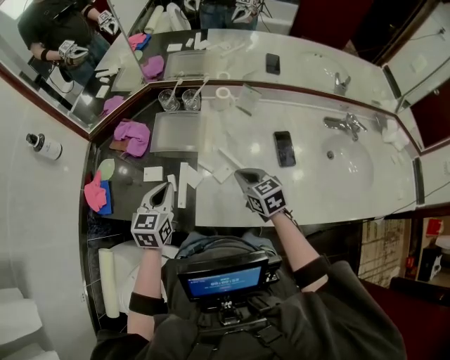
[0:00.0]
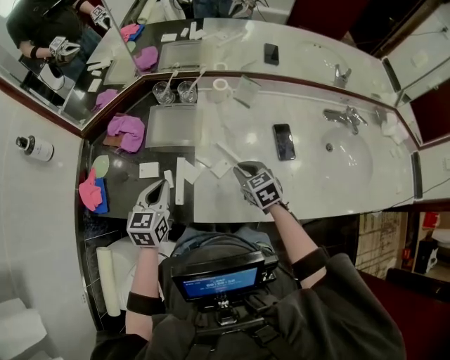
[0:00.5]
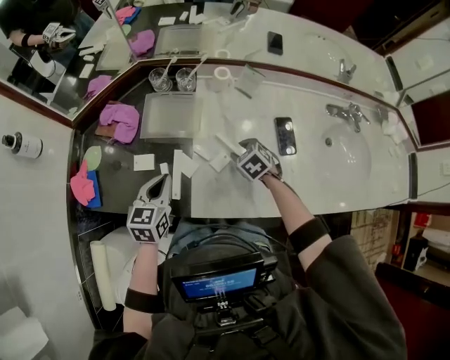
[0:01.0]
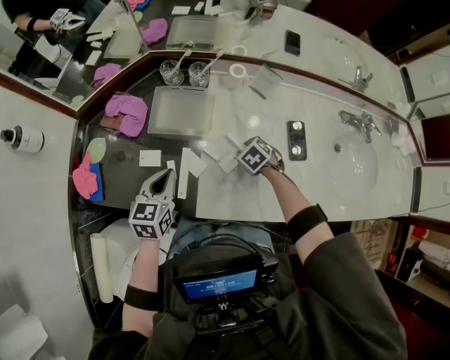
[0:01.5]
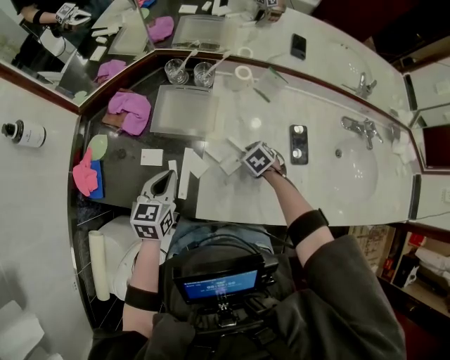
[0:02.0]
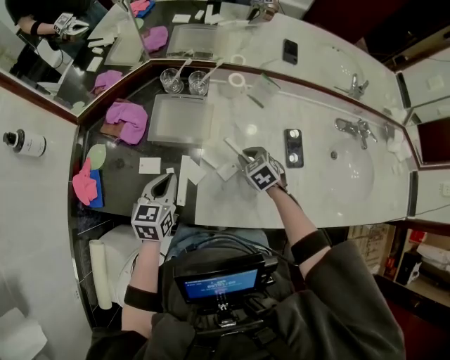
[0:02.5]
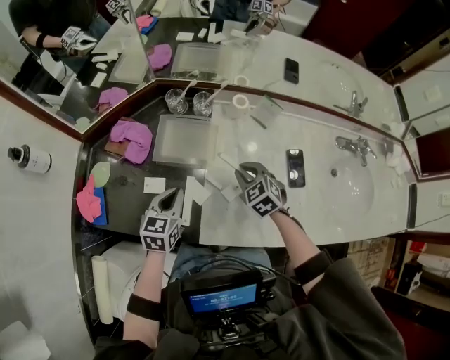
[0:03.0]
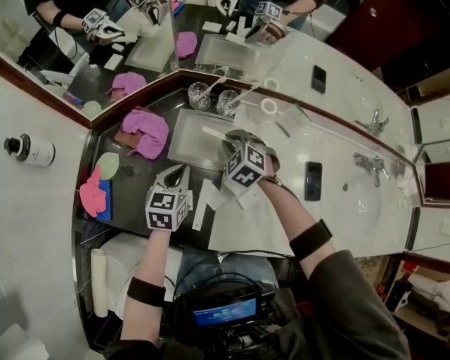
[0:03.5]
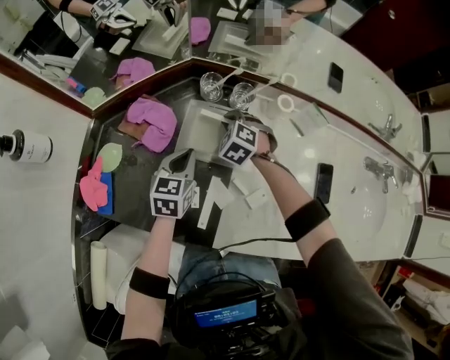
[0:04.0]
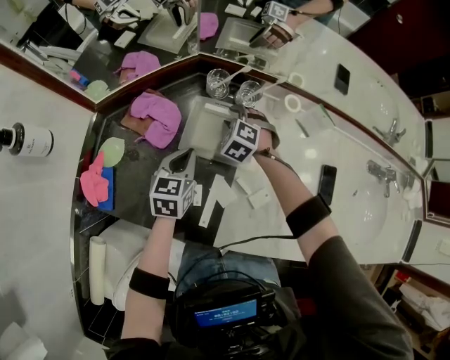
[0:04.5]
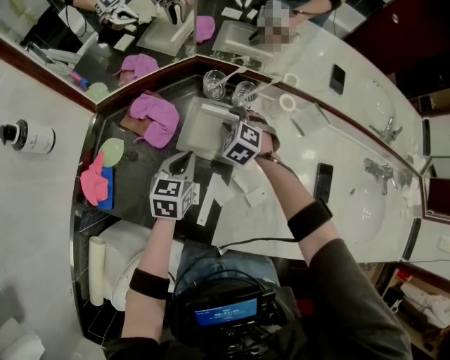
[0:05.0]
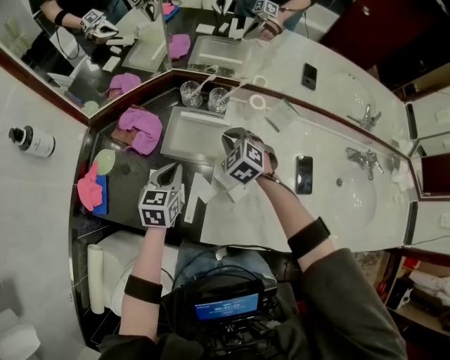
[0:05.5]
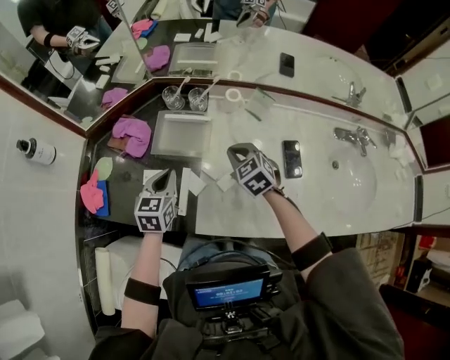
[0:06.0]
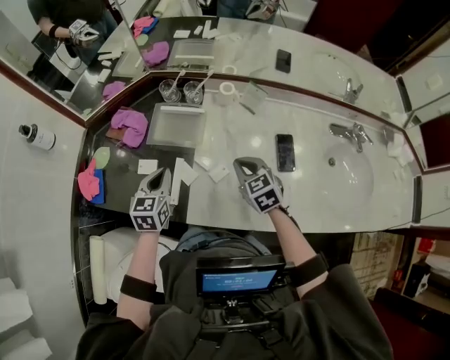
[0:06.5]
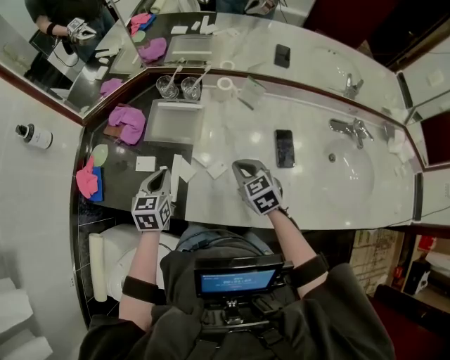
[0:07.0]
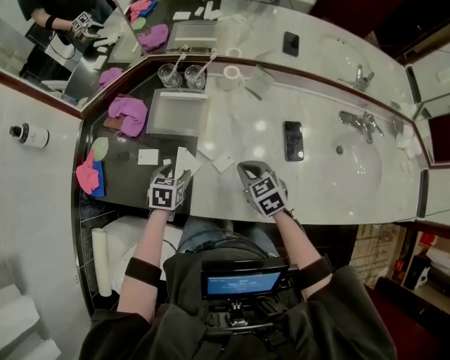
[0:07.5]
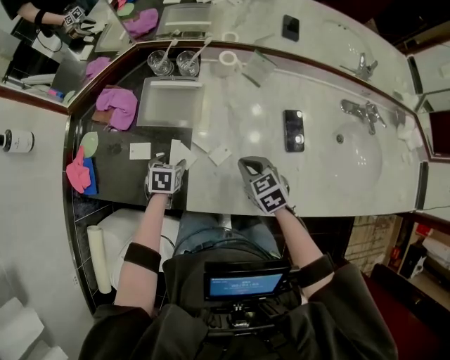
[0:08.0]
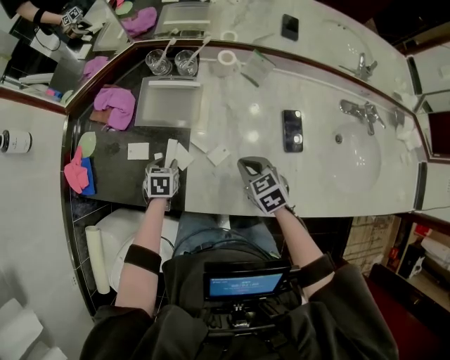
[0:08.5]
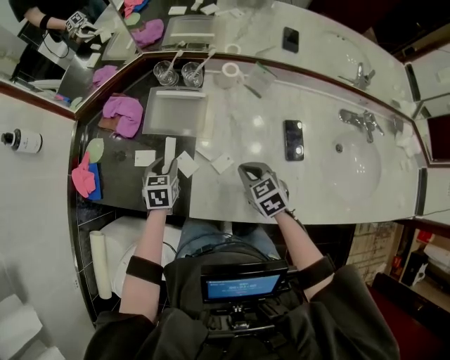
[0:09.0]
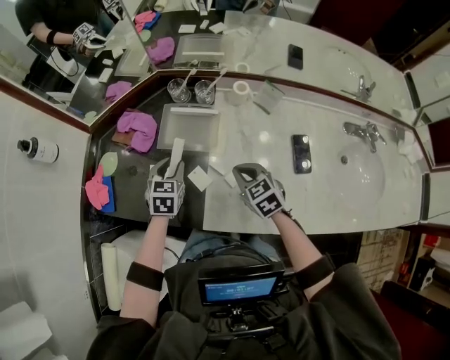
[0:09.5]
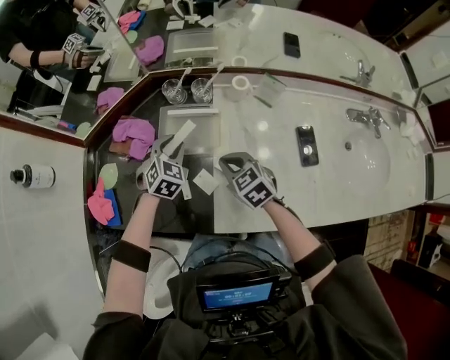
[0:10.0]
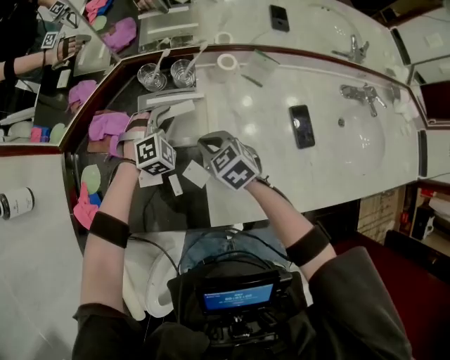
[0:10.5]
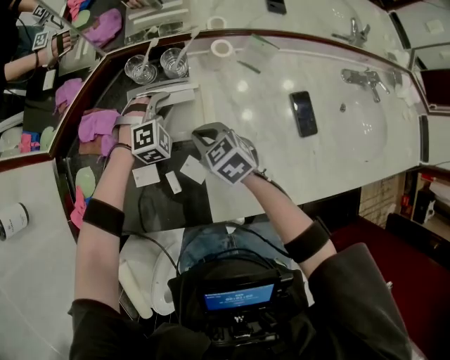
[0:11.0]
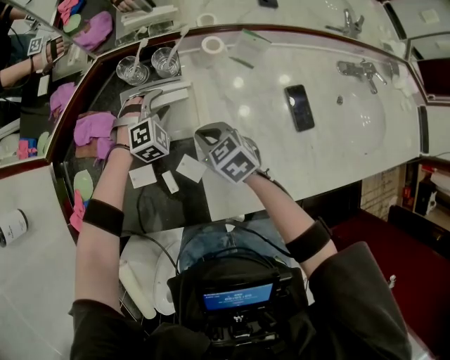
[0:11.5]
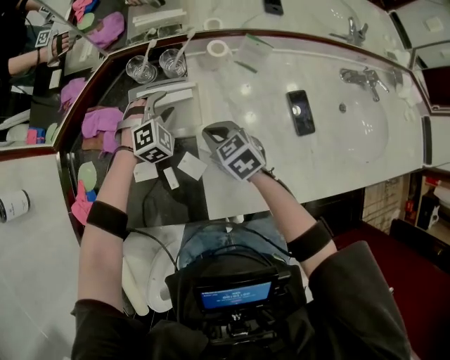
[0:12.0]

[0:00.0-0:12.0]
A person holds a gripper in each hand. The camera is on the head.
0:00.0 to 0:02.0: The right gripper goes roughly 15 cm downward, and points its fingers about 40 degrees further downward. Meanwhile the left gripper heads downward, covering about 5 cm.
0:02.0 to 0:04.0: The right gripper travels forward and to the left by roughly 30 cm, and rotates approximately 30 degrees. The left gripper travels forward by roughly 15 cm.
0:04.0 to 0:06.0: The right gripper shifts about 25 cm backward, to the right and upward, and swivels some 30 degrees. The left gripper heads backward and upward, covering approximately 15 cm.
0:06.0 to 0:08.0: The left gripper heads downward, covering roughly 15 cm, tilts its fingers roughly 30 degrees downward, and opens up. Meanwhile the right gripper goes approximately 15 cm backward and downward.
0:08.0 to 0:10.0: The left gripper is displaced forward and upward by roughly 20 cm, and twists some 40 degrees clockwise, seen from behind. The right gripper heads to the left and forward, covering about 15 cm.
0:10.0 to 0:12.0: The right gripper ends up roughly 5 cm from where it was. The left gripper shifts some 10 cm to the right, downward and forward, and changes its angle by some 40 degrees.

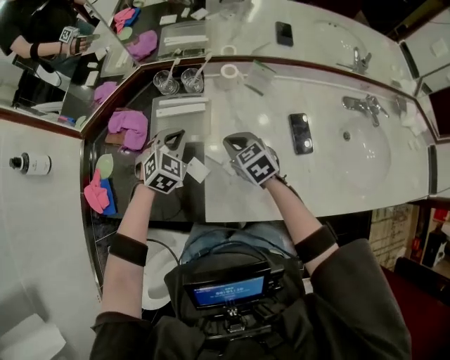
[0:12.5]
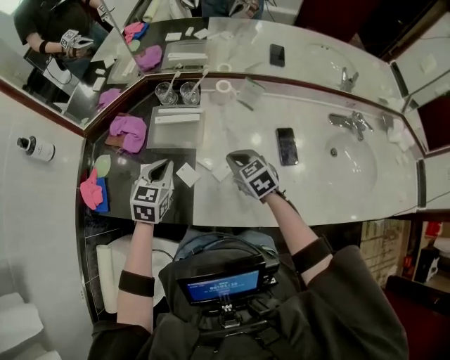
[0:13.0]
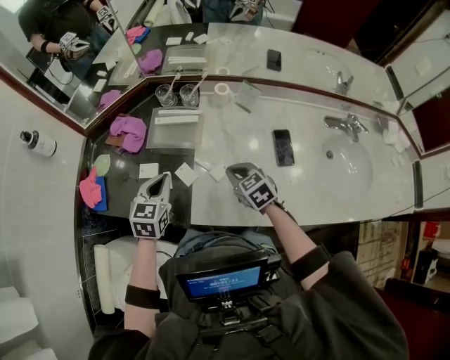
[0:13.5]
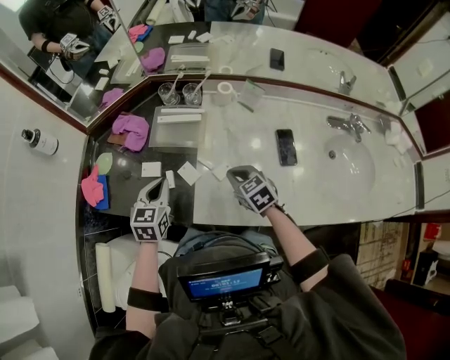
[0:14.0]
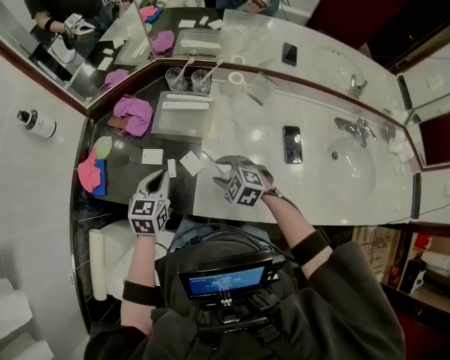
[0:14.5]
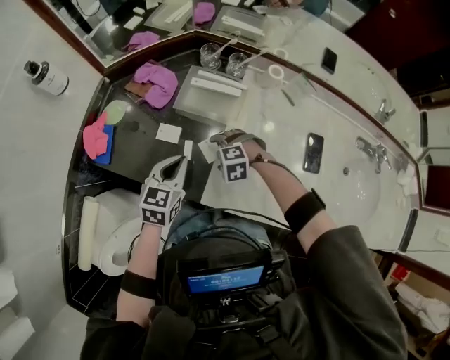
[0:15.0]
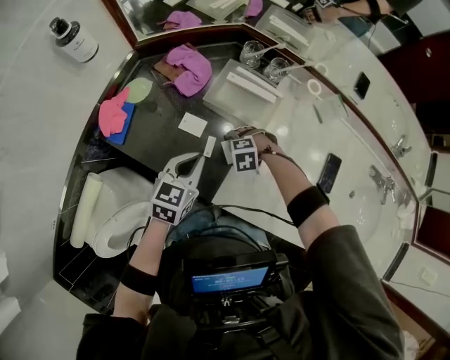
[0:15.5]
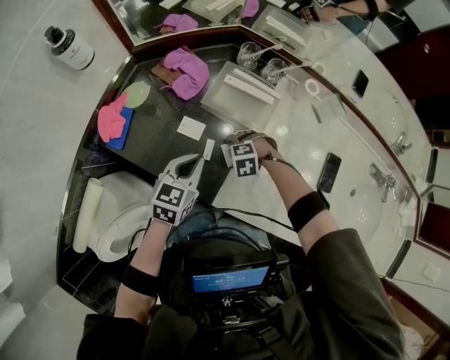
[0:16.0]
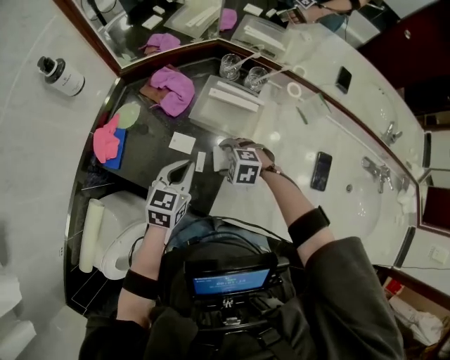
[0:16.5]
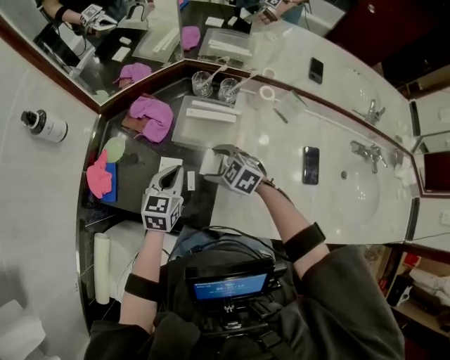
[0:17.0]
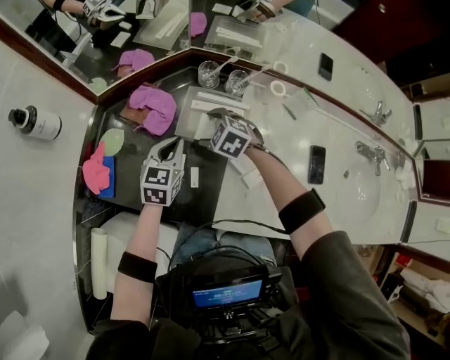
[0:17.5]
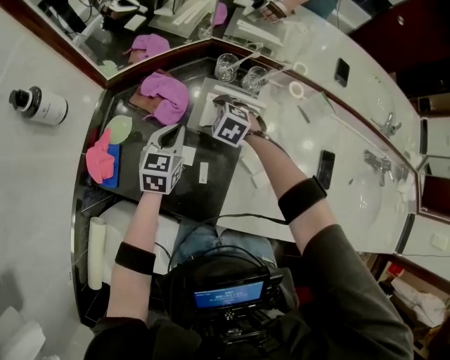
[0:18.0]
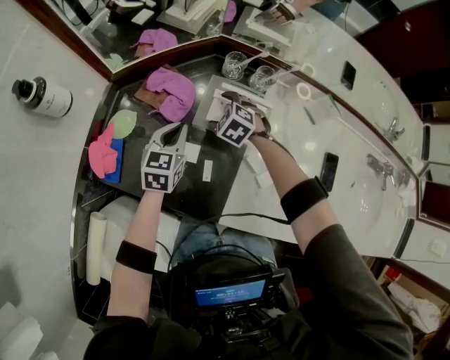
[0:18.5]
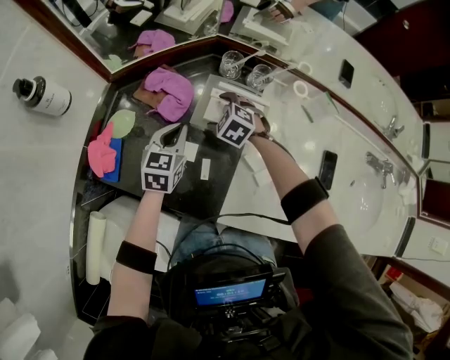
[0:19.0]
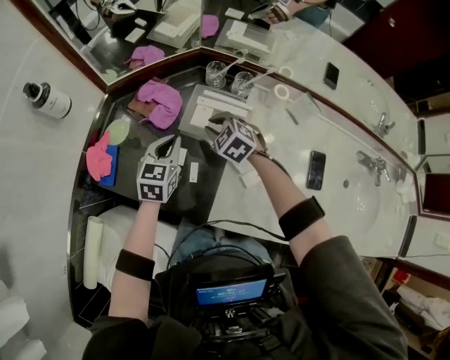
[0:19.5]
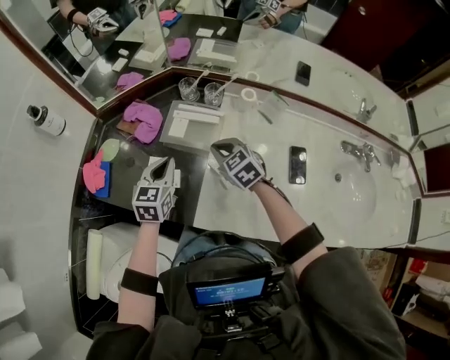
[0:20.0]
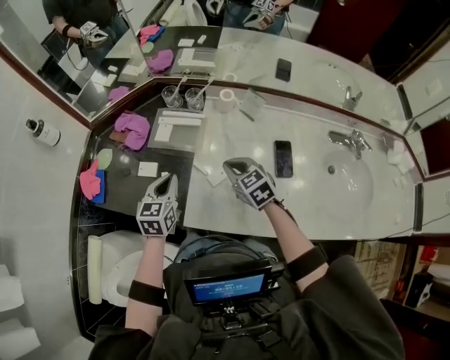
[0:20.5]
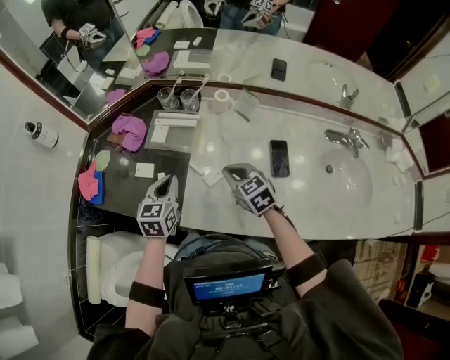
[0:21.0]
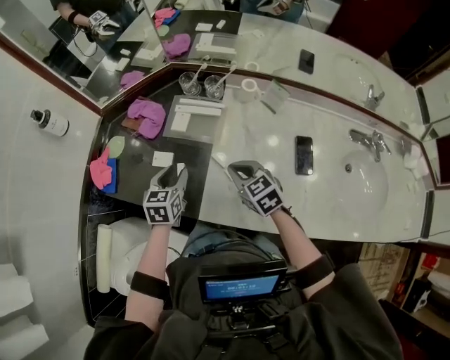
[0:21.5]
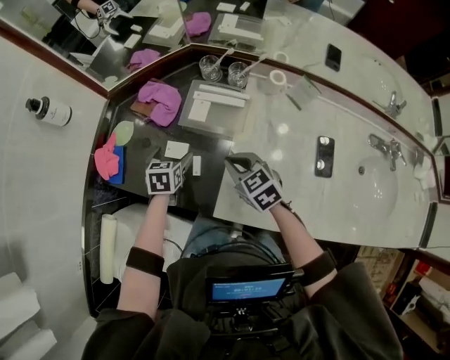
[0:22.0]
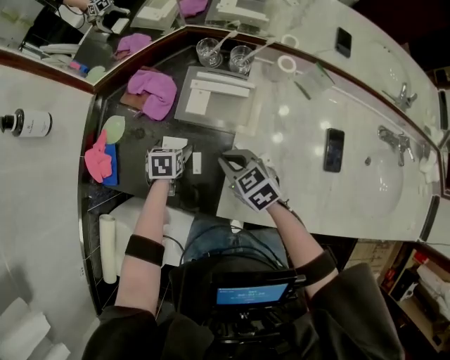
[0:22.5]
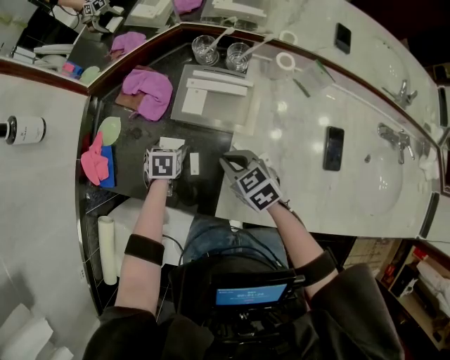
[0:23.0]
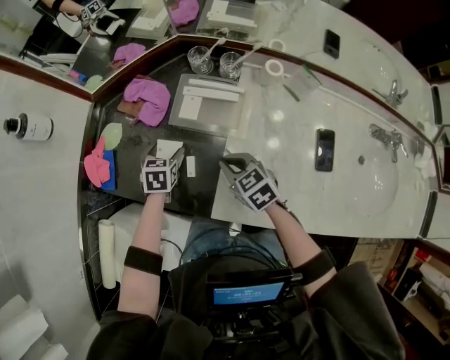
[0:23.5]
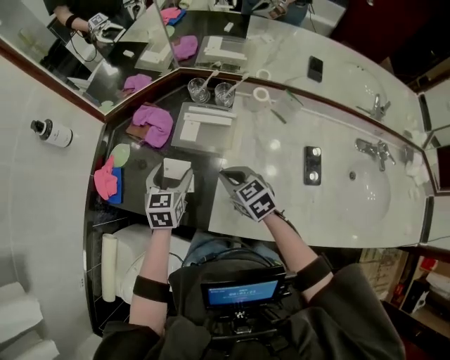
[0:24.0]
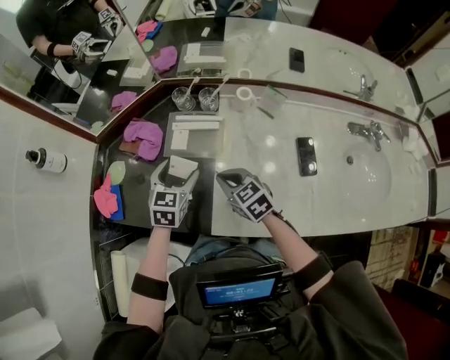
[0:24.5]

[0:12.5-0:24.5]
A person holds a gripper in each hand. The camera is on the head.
0:12.5 to 0:14.5: The grippers both shift backward and to the left by approximately 15 cm. The left gripper rotates around the line of its fingers by about 40 degrees, counterclockwise from behind; the right gripper swivels some 40 degrees, and opens.
0:14.5 to 0:16.5: The right gripper shifts by about 15 cm, swivels some 30 degrees, and opens up. Meanwhile the left gripper moves about 5 cm.
0:16.5 to 0:18.5: Both grippers travel together forward, some 20 cm. The right gripper changes its angle by roughly 30 degrees.
0:18.5 to 0:20.5: The left gripper travels backward and to the right by some 25 cm, while the right gripper goes some 35 cm backward, to the right and upward, rotates some 40 degrees, and closes up.
0:20.5 to 0:22.5: The right gripper moves to the left, downward and forward, roughly 20 cm, while the left gripper moves downward, to the left and forward, approximately 25 cm, tilts its fingers some 40 degrees downward, and opens up.
0:22.5 to 0:24.5: The right gripper shifts some 10 cm upward and to the right; the left gripper heads upward and to the right, covering roughly 20 cm, and turns by some 40 degrees.

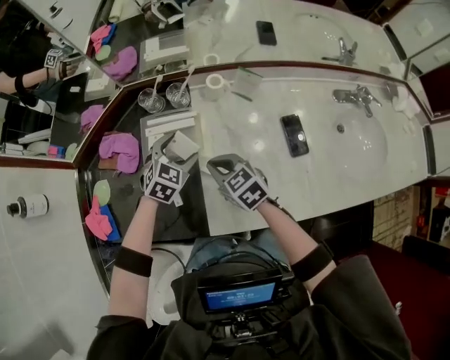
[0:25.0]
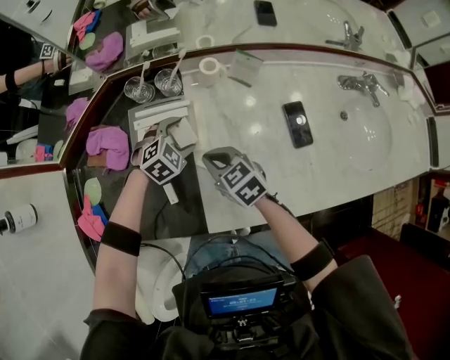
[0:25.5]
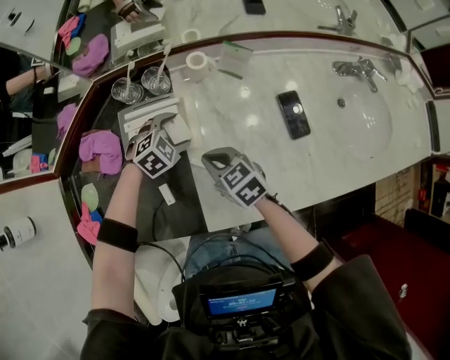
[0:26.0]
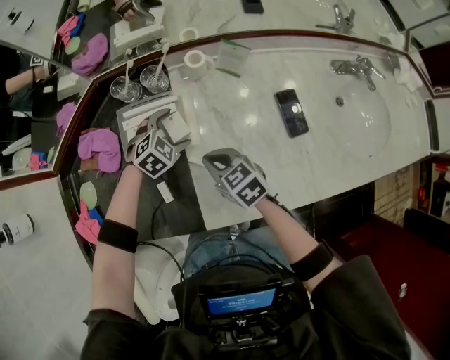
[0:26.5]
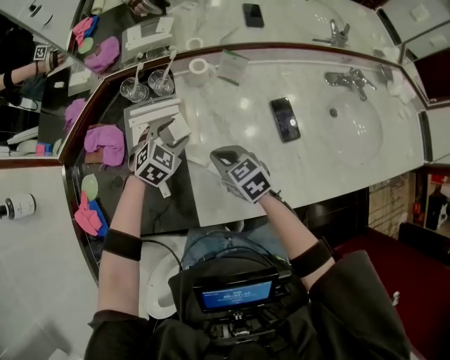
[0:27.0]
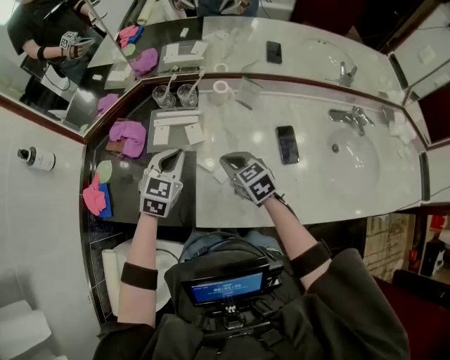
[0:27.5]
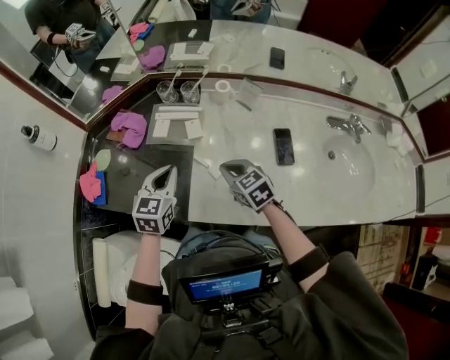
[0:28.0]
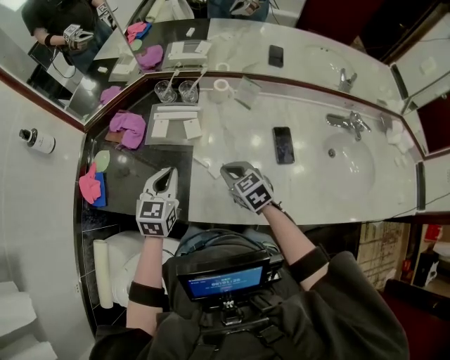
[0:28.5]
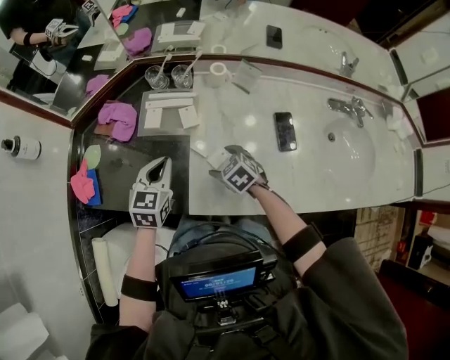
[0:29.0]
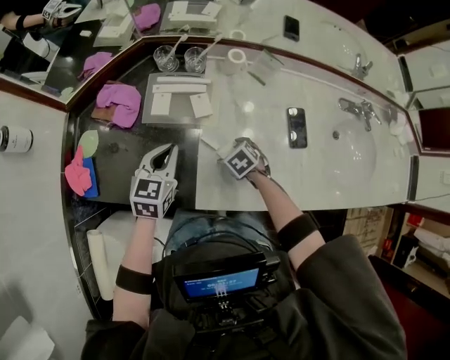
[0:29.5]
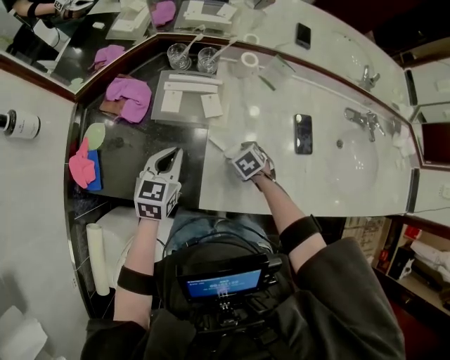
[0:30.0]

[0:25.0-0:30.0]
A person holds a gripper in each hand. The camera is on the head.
0:25.0 to 0:27.5: The right gripper is displaced to the right by approximately 5 cm. Meanwhile the left gripper moves upward and backward, some 15 cm, and closes.
0:27.5 to 0:30.0: The left gripper goes some 10 cm to the left and downward, and swivels roughly 20 degrees, while the right gripper goes about 20 cm downward, points its fingers some 30 degrees further downward, and opens up.
